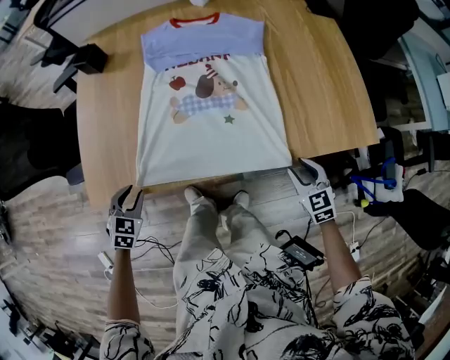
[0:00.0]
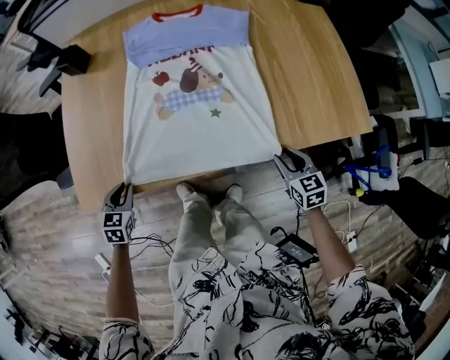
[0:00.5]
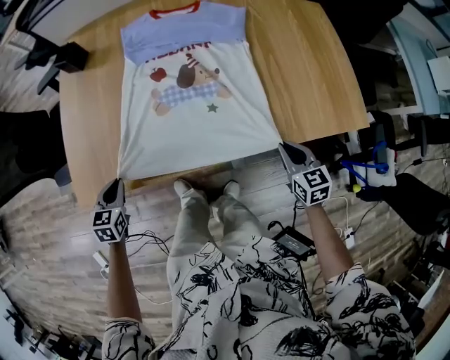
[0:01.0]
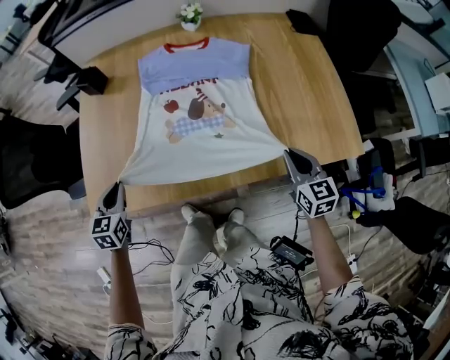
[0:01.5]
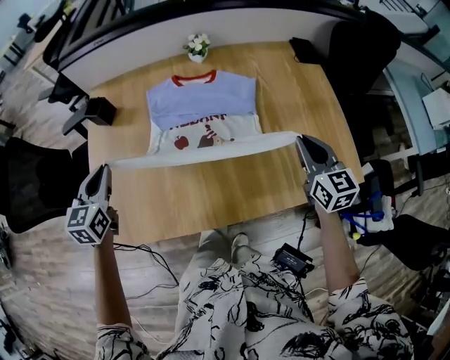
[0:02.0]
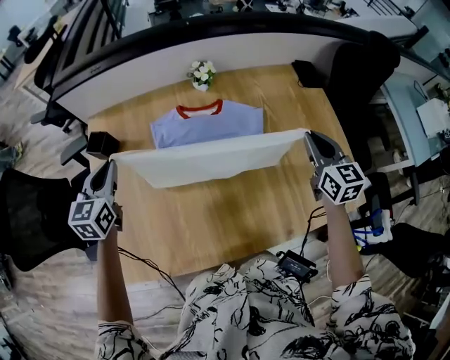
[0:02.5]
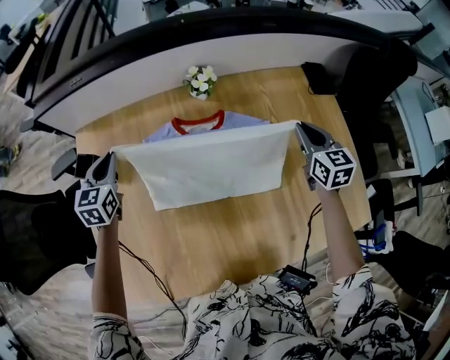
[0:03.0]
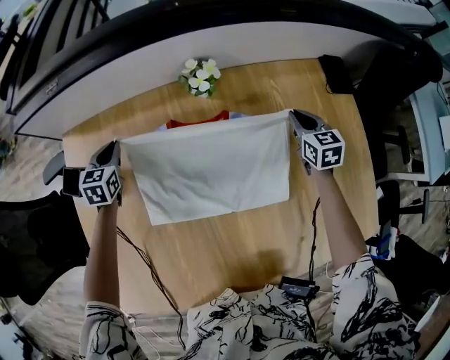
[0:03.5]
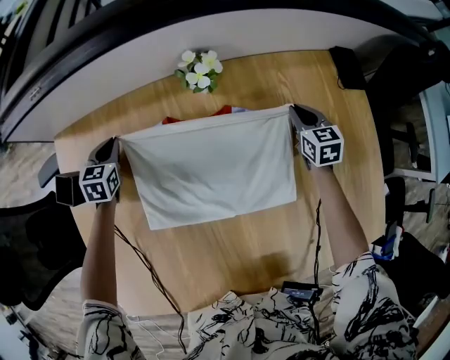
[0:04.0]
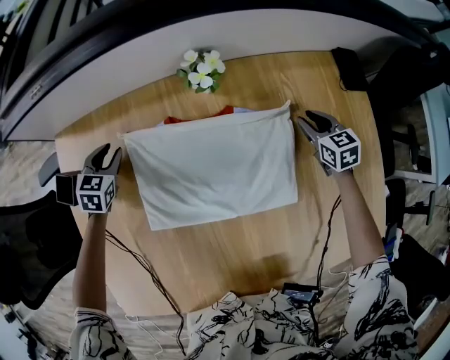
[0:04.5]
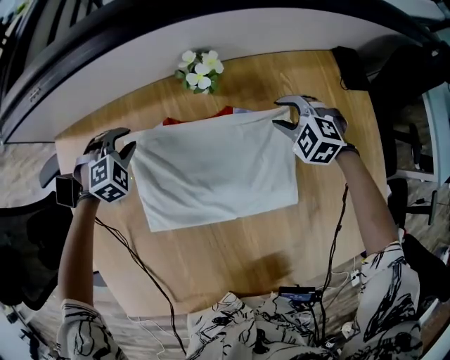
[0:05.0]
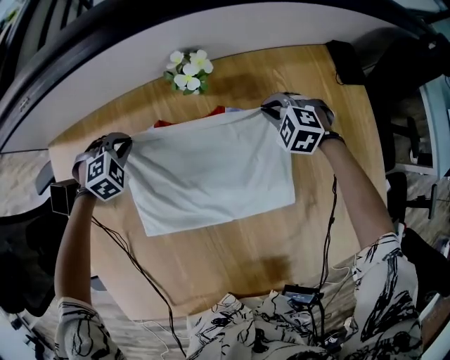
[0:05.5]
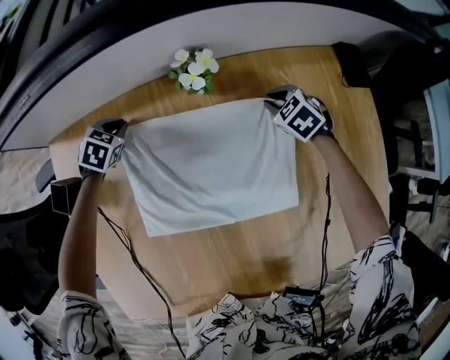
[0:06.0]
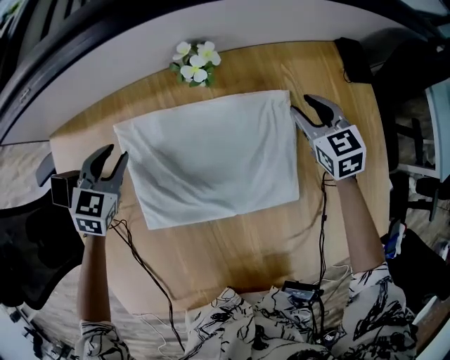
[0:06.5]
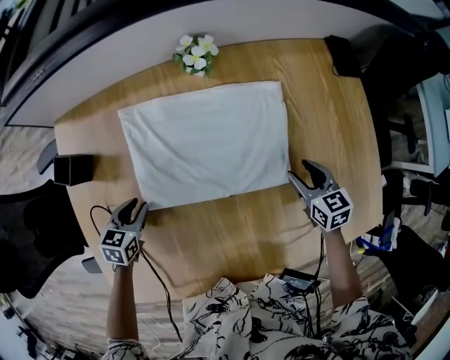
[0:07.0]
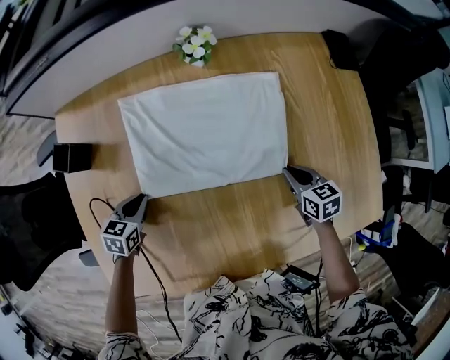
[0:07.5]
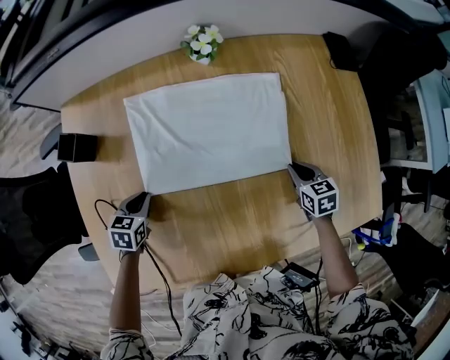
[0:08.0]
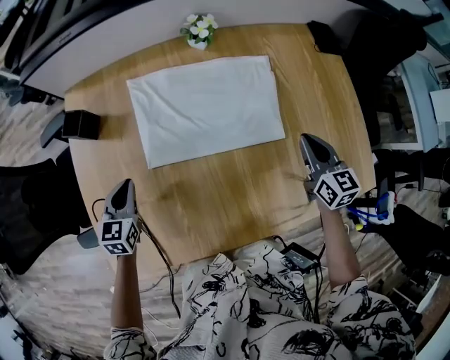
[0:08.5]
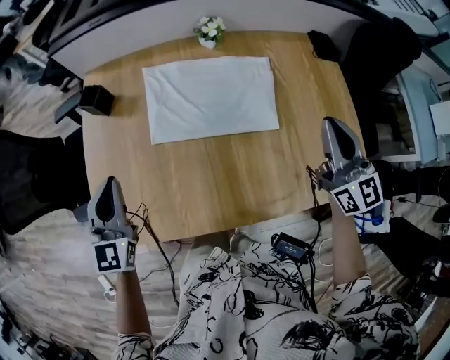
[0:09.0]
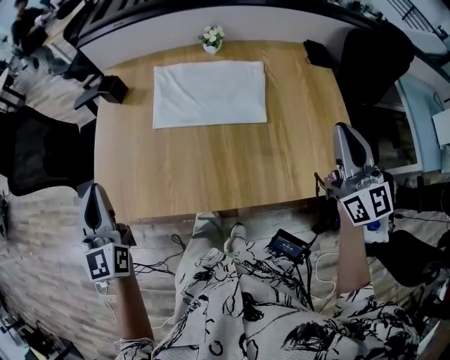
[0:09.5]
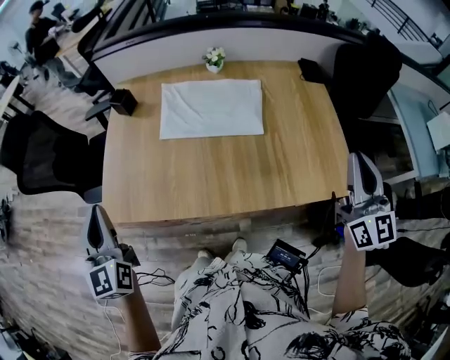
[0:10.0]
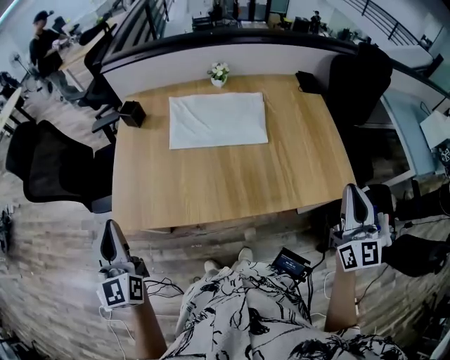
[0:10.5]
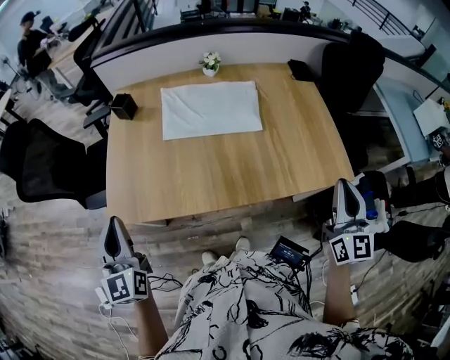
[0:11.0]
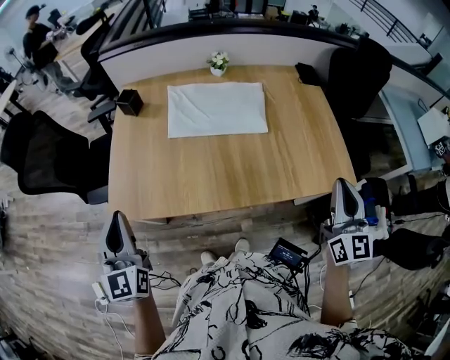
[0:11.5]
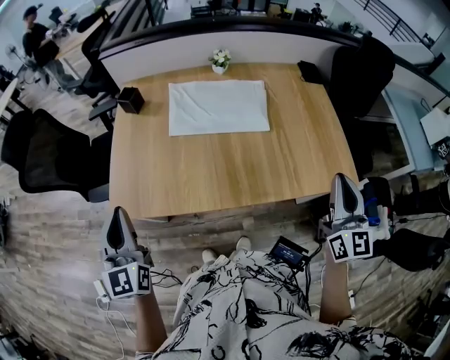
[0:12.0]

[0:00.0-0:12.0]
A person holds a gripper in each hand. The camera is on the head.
0:00.0 to 0:02.0: The grippers both shift upward and forward by approximately 30 cm. The left gripper turns by approximately 40 degrees. The right gripper rotates roughly 30 degrees.
0:02.0 to 0:04.0: The two grippers travel together, forward, some 40 cm. Both grippers travel together downward, about 25 cm. The right gripper swivels some 20 degrees. The left gripper turns by some 20 degrees.
0:04.0 to 0:06.0: The right gripper moves to the left, roughly 5 cm, and swivels roughly 40 degrees; the left gripper is displaced to the right by roughly 5 cm, and swivels roughly 30 degrees.
0:06.0 to 0:08.0: The two grippers go some 35 cm backward. The right gripper rotates some 40 degrees, and opens, then closes again, while the left gripper swivels approximately 30 degrees.
0:08.0 to 0:10.0: The two grippers go roughly 50 cm upward and backward. The right gripper tips its fingers upward by about 60 degrees. The left gripper angles its fingers upward, by some 60 degrees.
0:10.0 to 0:12.0: The right gripper goes approximately 10 cm backward and to the left.

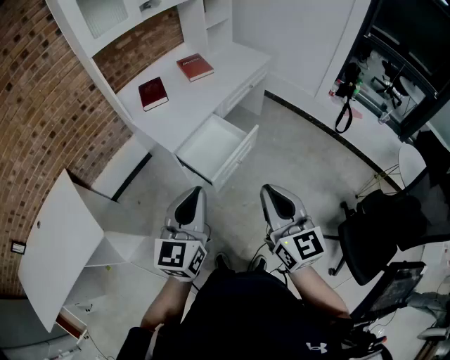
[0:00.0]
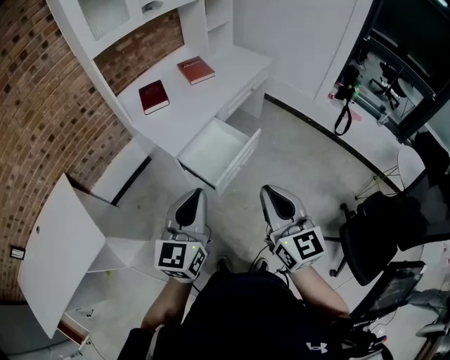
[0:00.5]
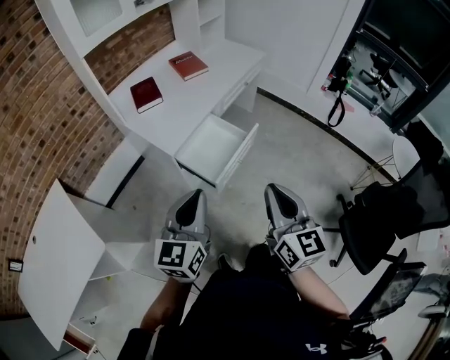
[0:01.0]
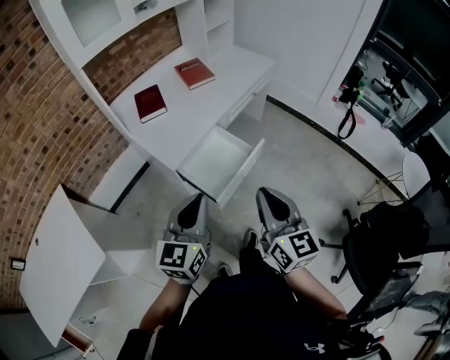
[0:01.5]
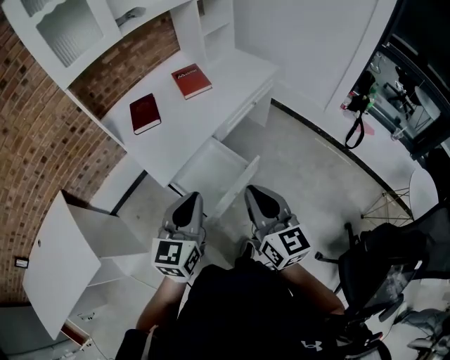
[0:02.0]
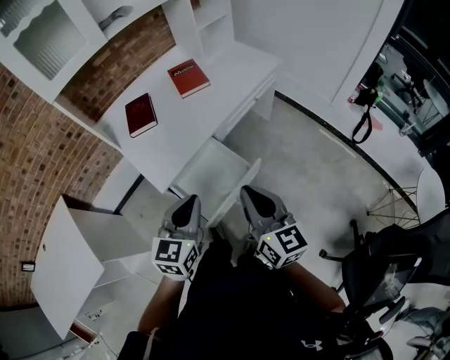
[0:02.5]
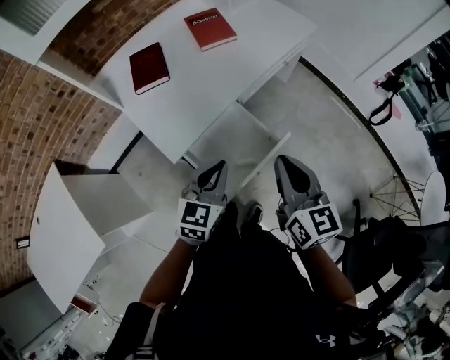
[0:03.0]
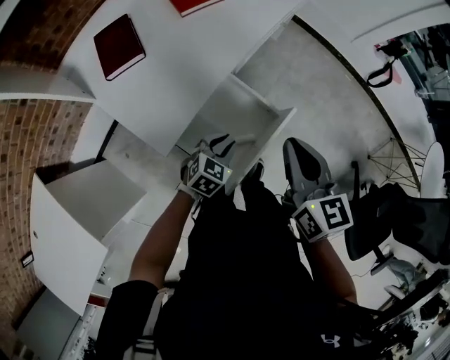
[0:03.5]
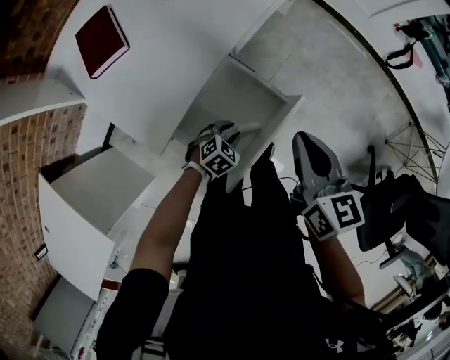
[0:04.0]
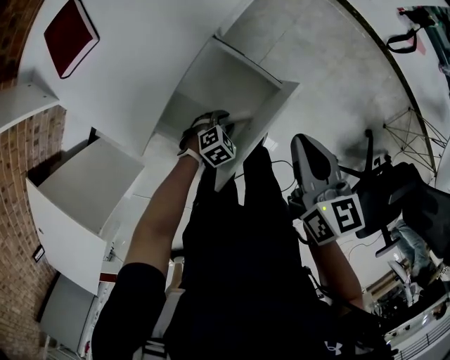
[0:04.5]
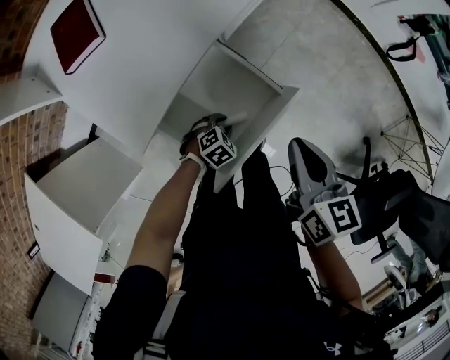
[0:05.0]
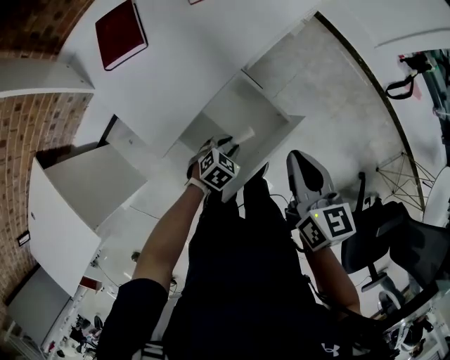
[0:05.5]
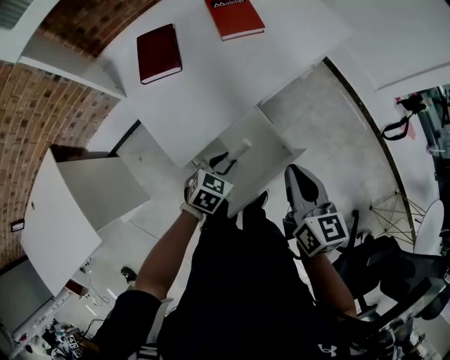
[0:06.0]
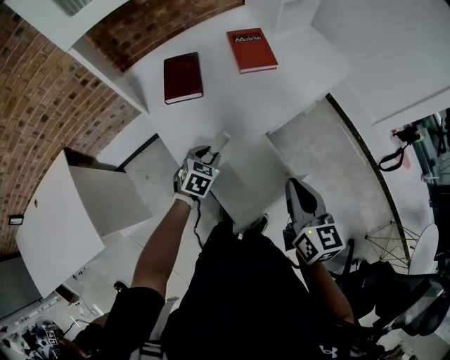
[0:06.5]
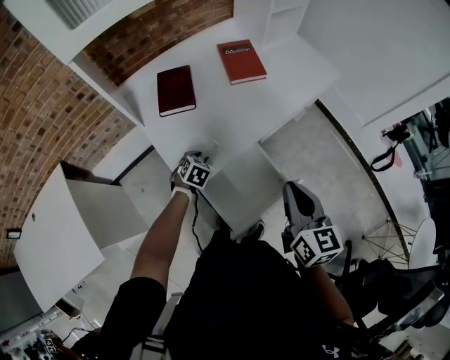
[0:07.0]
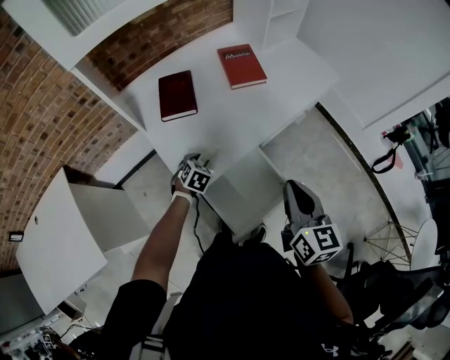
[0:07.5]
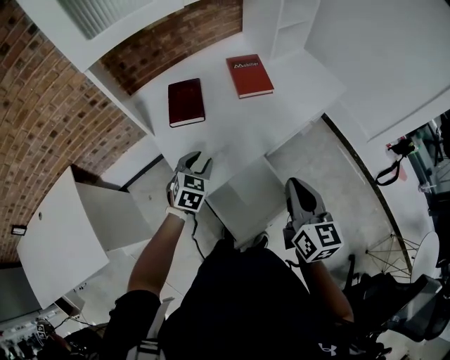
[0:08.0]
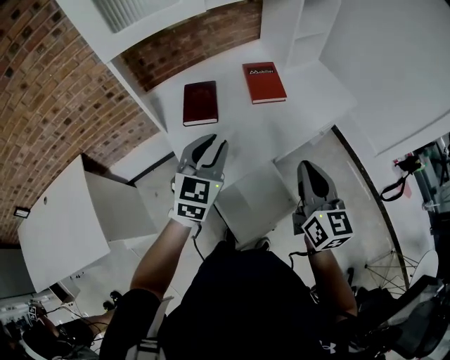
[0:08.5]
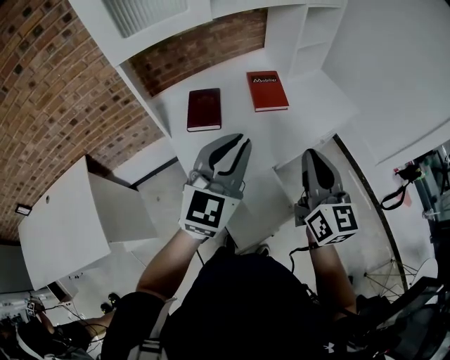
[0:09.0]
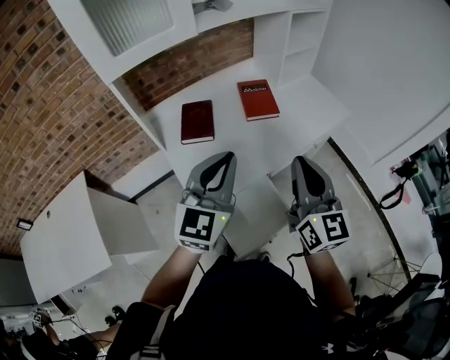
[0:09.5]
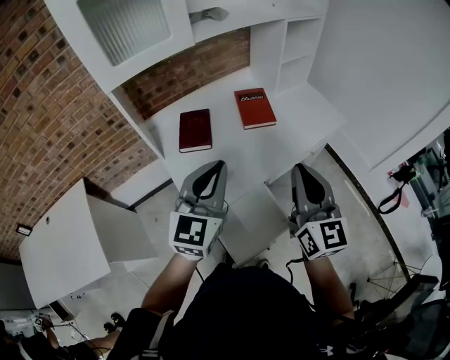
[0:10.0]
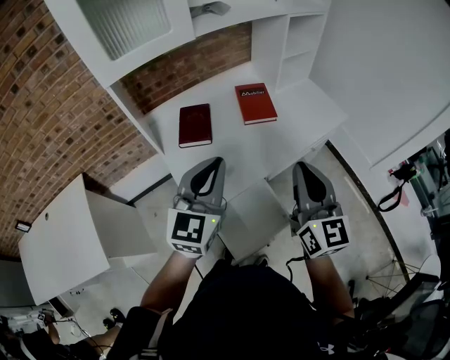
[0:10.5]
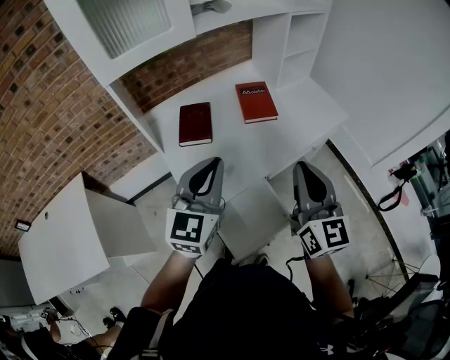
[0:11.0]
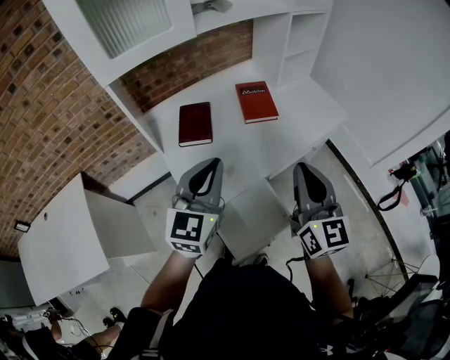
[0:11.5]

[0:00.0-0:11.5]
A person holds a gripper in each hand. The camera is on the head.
0:00.0 to 0:02.0: Both grippers move forward, some 20 cm.
0:02.0 to 0:04.0: The right gripper shifts roughly 20 cm downward, and turns by approximately 30 degrees; the left gripper goes roughly 50 cm downward, points its fingers roughly 50 degrees further downward, and opens up.
0:04.0 to 0:06.0: The left gripper heads upward and to the left, covering some 15 cm, and turns by approximately 30 degrees, while the right gripper moves to the left, approximately 5 cm.
0:06.0 to 0:07.5: The left gripper heads to the left and forward, covering roughly 15 cm. The right gripper goes about 5 cm upward.
0:07.5 to 0:09.5: The right gripper travels upward and forward by approximately 15 cm, and changes its angle by approximately 20 degrees; the left gripper shifts roughly 40 cm upward, points its fingers roughly 50 degrees further upward, and closes.
0:09.5 to 0:11.5: The grippers make only small movements.

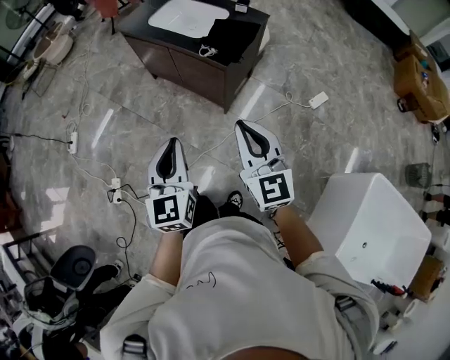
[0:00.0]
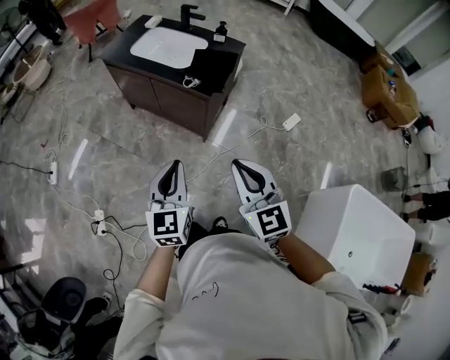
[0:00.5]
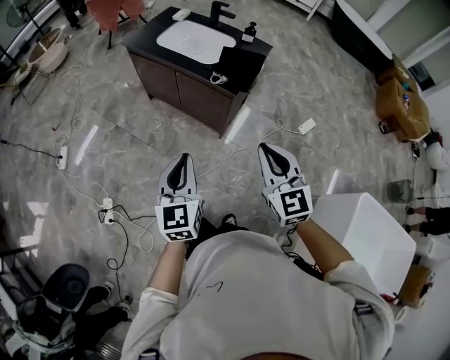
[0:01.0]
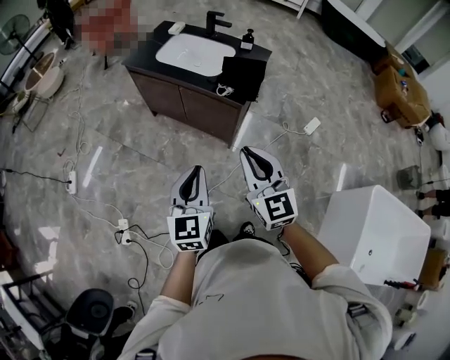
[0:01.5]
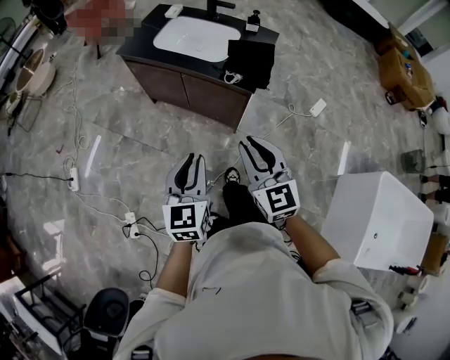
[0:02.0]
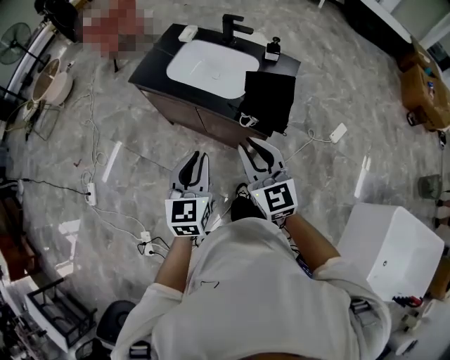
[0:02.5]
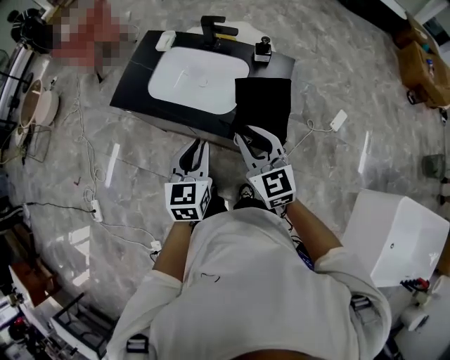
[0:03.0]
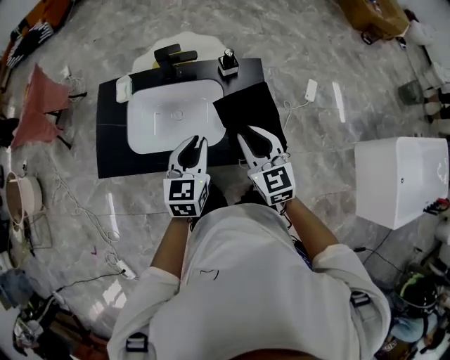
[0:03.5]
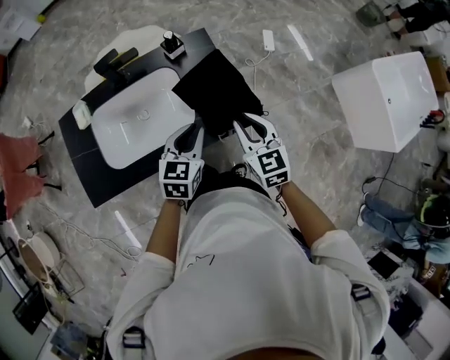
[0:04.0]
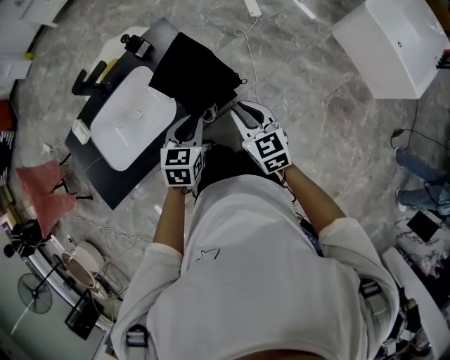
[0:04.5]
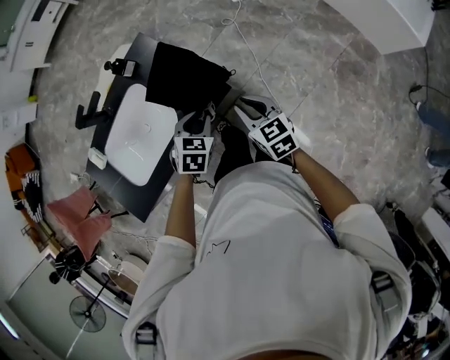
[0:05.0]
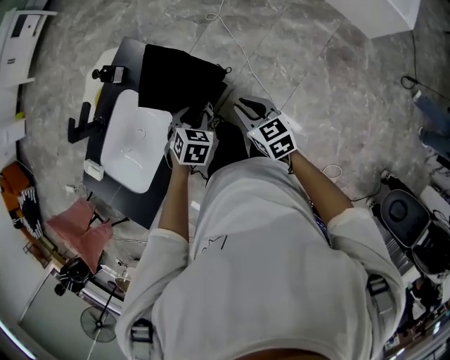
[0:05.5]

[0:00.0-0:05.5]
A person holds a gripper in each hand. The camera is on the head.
0:00.0 to 0:02.0: Both grippers travel together to the left and forward, approximately 20 cm.
0:02.0 to 0:03.5: The two grippers travel together, some 50 cm. The left gripper rotates about 30 degrees, while the right gripper changes its angle by approximately 30 degrees.
0:03.5 to 0:05.5: The right gripper shifts by about 25 cm, and rotates approximately 50 degrees. The left gripper travels downward by about 20 cm, angles its fingers downward, by roughly 40 degrees, and opens.
